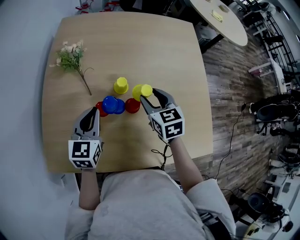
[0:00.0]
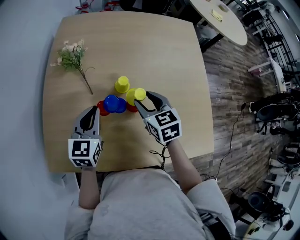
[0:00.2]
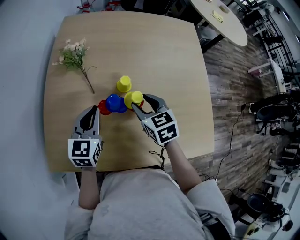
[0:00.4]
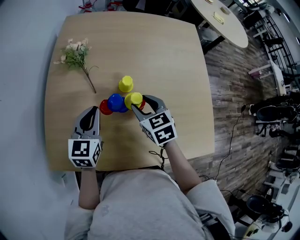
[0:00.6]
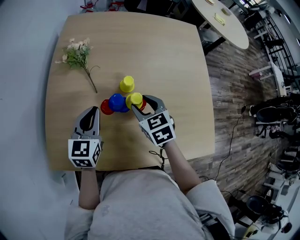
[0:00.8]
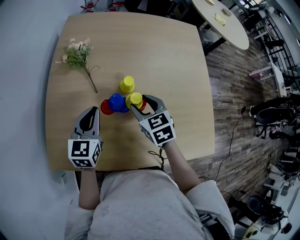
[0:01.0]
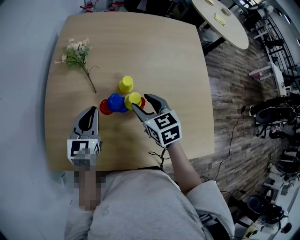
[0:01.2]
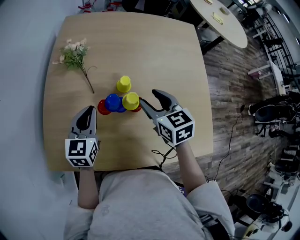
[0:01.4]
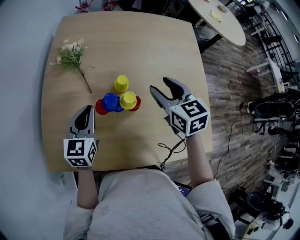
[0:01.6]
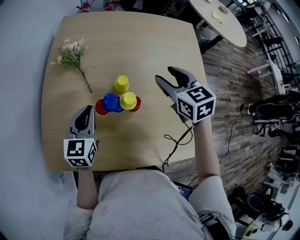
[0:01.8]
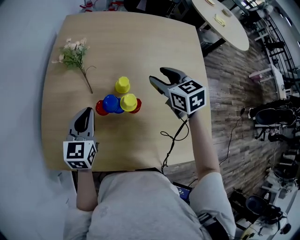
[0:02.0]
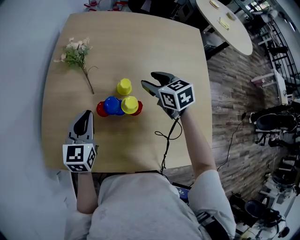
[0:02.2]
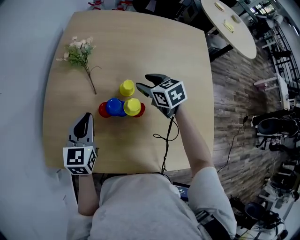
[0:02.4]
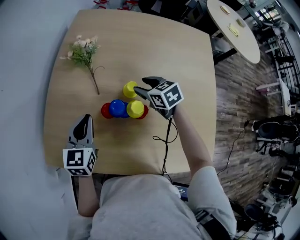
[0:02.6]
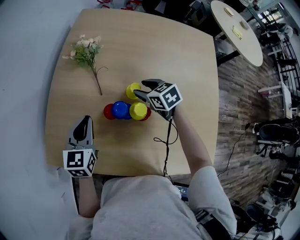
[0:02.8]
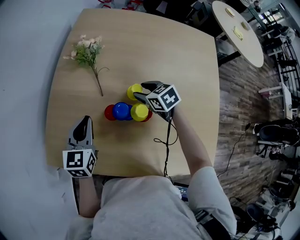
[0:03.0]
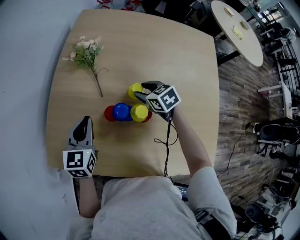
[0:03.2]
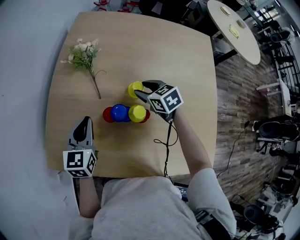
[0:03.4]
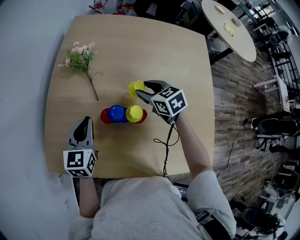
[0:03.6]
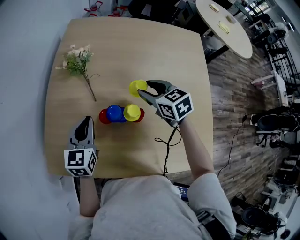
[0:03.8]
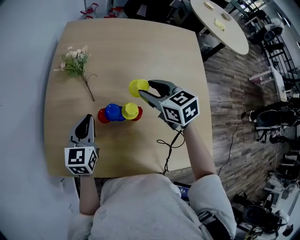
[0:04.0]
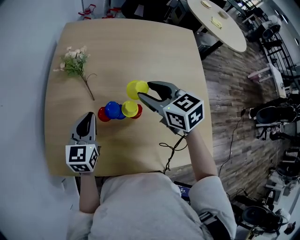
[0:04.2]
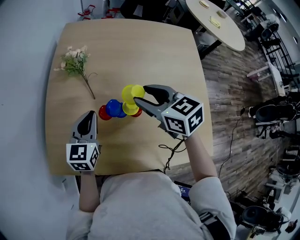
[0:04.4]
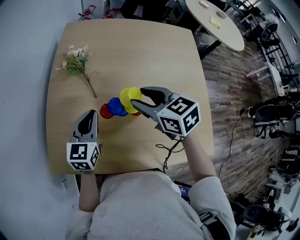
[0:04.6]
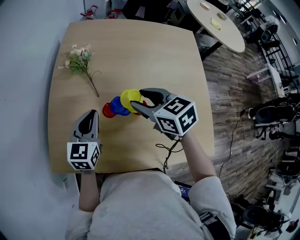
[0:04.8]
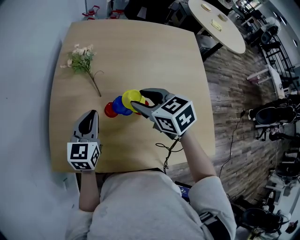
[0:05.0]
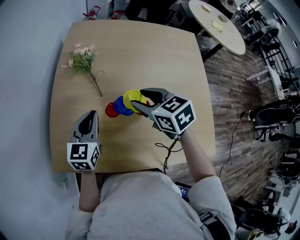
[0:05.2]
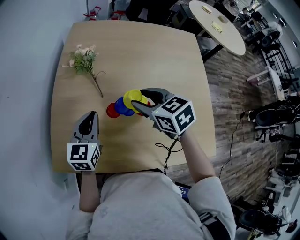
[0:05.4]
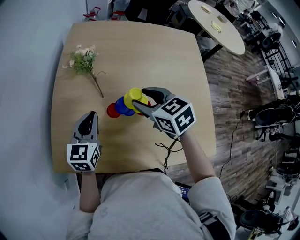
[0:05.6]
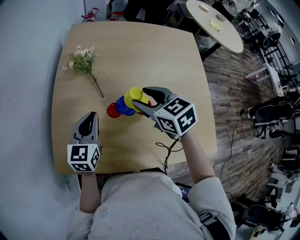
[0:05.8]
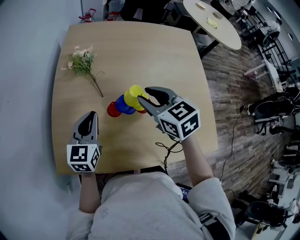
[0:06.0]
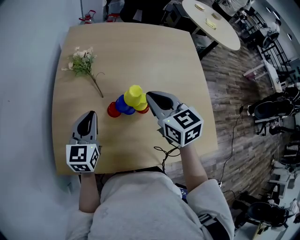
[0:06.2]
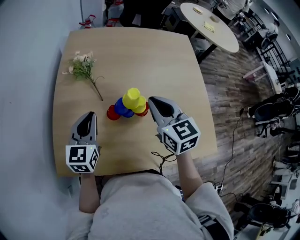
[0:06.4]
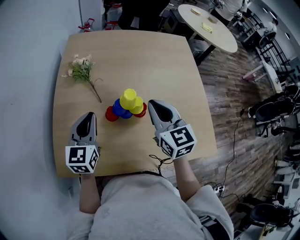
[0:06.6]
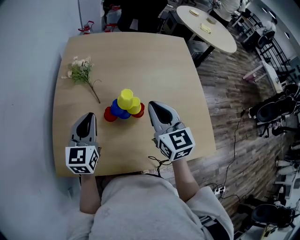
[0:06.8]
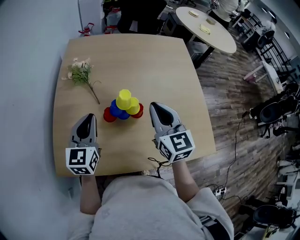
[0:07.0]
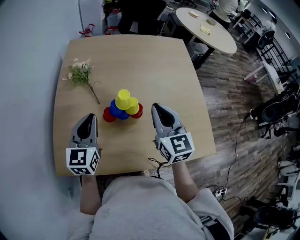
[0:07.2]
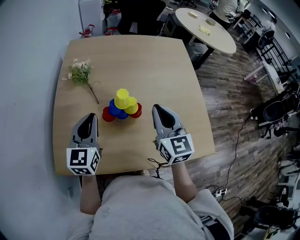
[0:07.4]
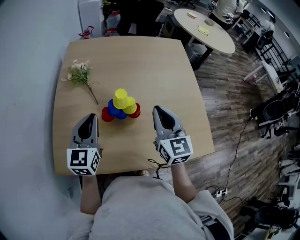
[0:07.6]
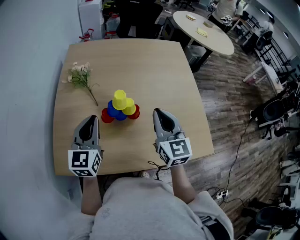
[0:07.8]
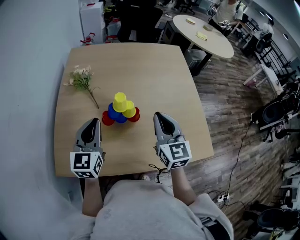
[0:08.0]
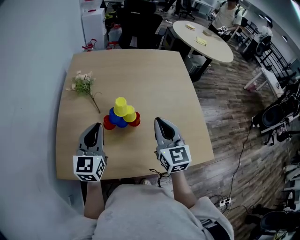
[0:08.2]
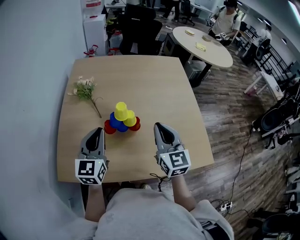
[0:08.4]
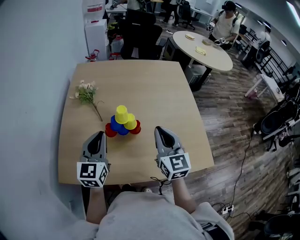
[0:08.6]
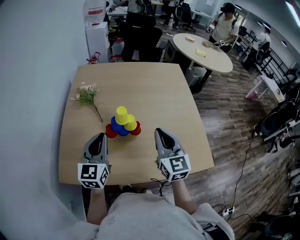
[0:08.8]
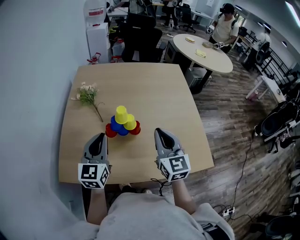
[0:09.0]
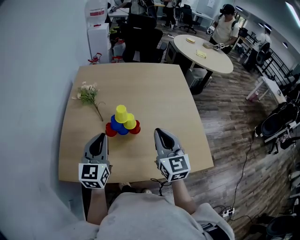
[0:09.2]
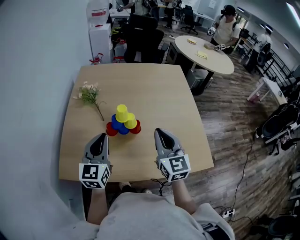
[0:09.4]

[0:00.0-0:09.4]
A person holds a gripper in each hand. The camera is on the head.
0.0 to 1.6 s: The right gripper moves upward, about 10 cm.
1.6 to 3.2 s: The right gripper goes some 20 cm downward, forward and to the left, and turns by some 30 degrees. Meanwhile the left gripper ends up some 5 cm from where it was.
3.2 to 4.8 s: The right gripper shifts about 20 cm upward and backward.
4.8 to 6.2 s: The right gripper rotates roughly 20 degrees, and closes up.
6.2 to 7.8 s: The left gripper heads upward and to the right, covering approximately 10 cm; the right gripper travels to the right and backward by approximately 10 cm, and changes its angle by about 30 degrees.
7.8 to 9.4 s: The grippers both shift backward by approximately 5 cm.

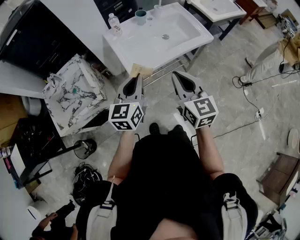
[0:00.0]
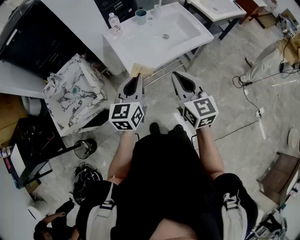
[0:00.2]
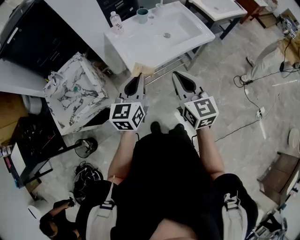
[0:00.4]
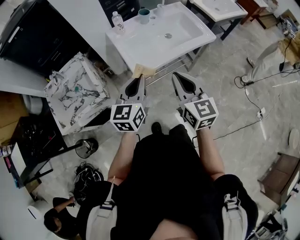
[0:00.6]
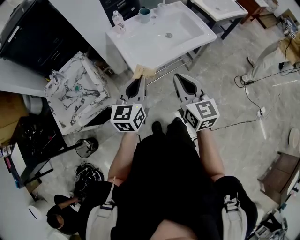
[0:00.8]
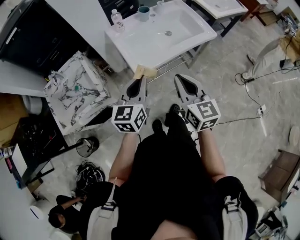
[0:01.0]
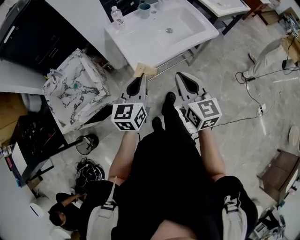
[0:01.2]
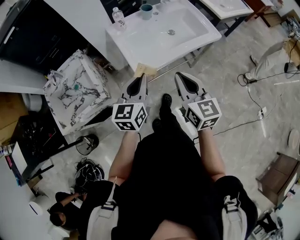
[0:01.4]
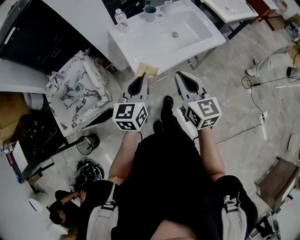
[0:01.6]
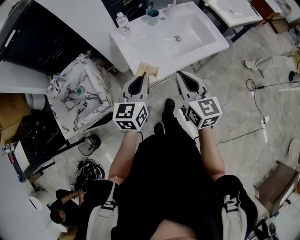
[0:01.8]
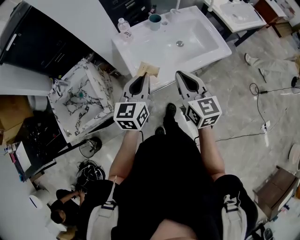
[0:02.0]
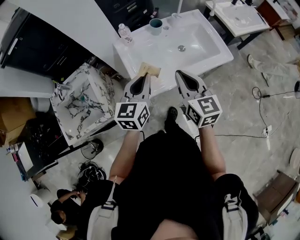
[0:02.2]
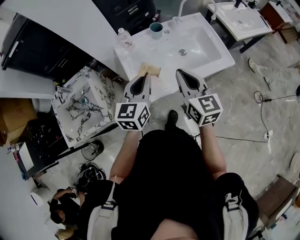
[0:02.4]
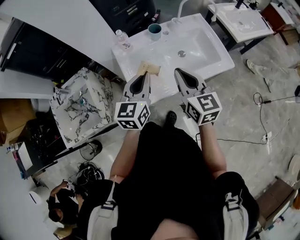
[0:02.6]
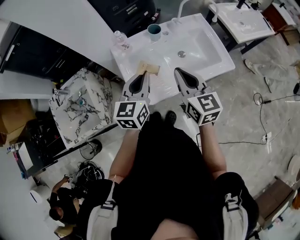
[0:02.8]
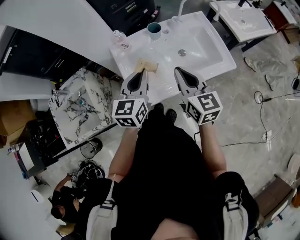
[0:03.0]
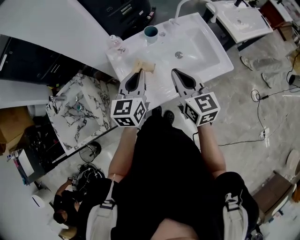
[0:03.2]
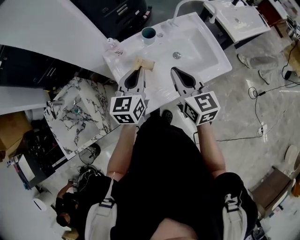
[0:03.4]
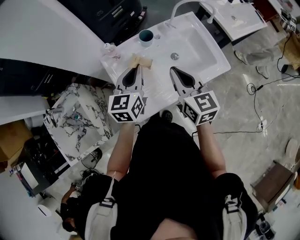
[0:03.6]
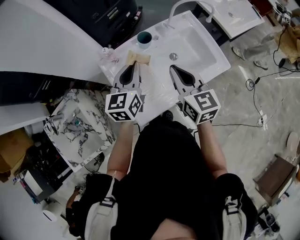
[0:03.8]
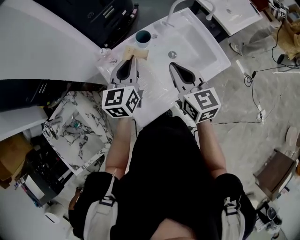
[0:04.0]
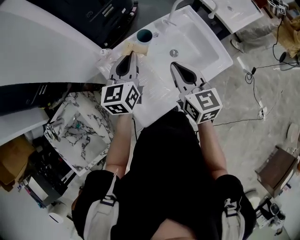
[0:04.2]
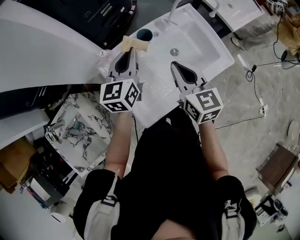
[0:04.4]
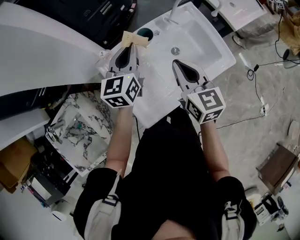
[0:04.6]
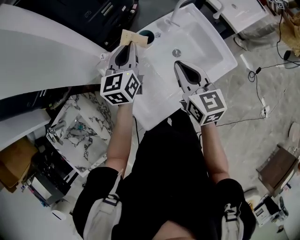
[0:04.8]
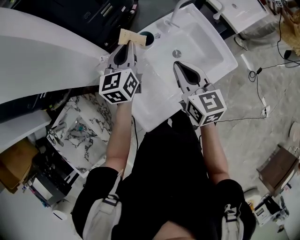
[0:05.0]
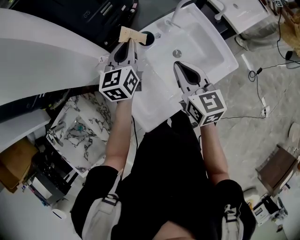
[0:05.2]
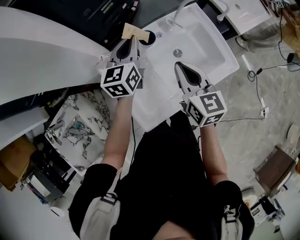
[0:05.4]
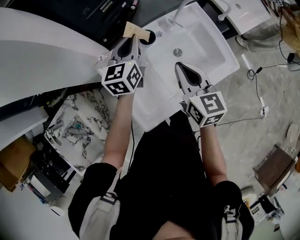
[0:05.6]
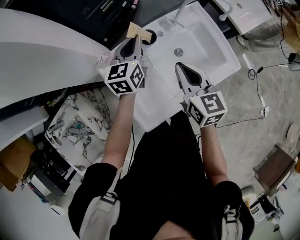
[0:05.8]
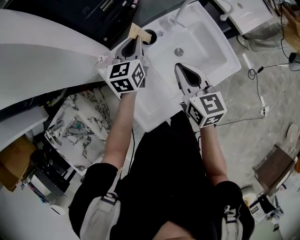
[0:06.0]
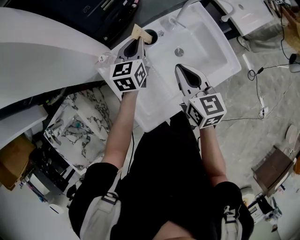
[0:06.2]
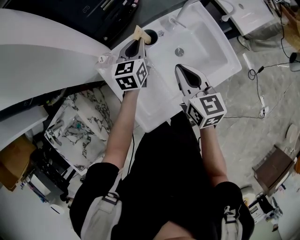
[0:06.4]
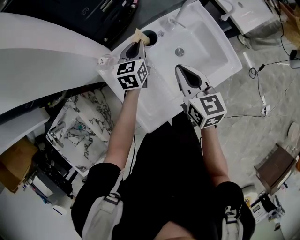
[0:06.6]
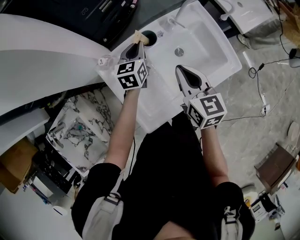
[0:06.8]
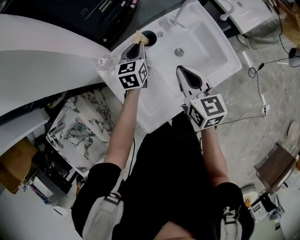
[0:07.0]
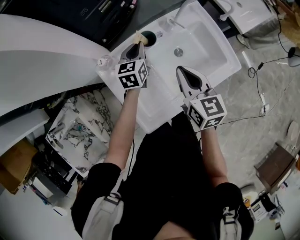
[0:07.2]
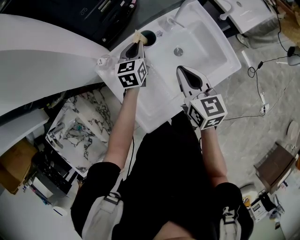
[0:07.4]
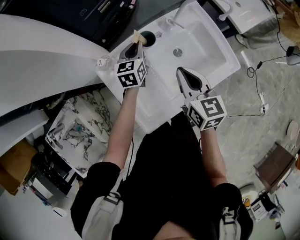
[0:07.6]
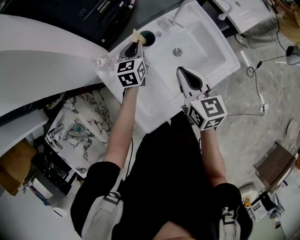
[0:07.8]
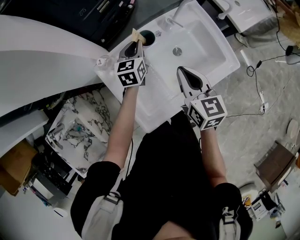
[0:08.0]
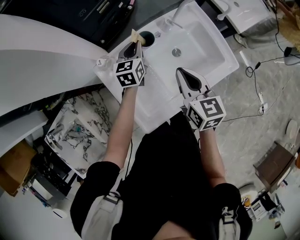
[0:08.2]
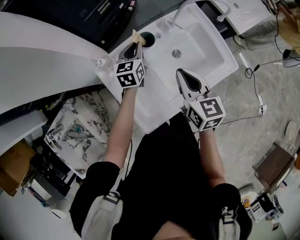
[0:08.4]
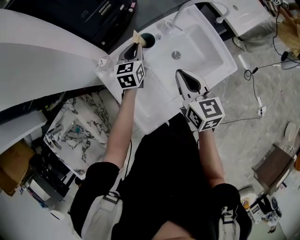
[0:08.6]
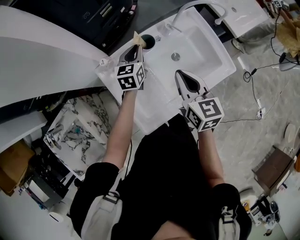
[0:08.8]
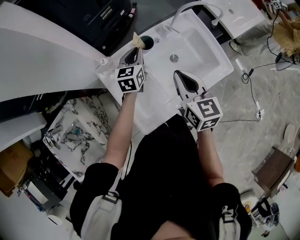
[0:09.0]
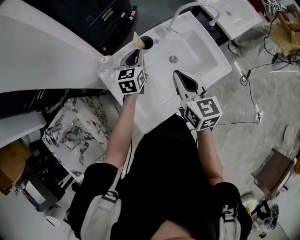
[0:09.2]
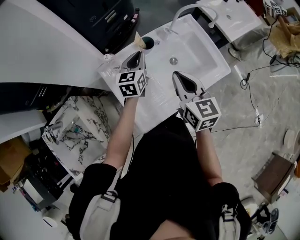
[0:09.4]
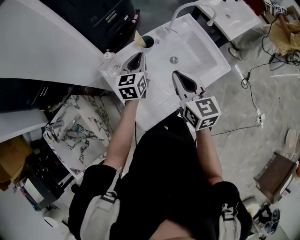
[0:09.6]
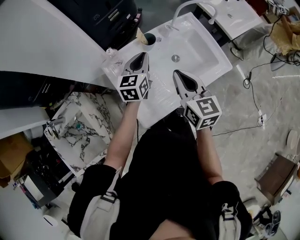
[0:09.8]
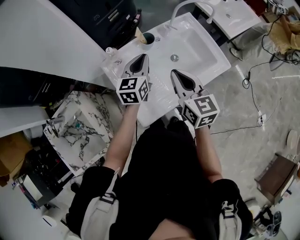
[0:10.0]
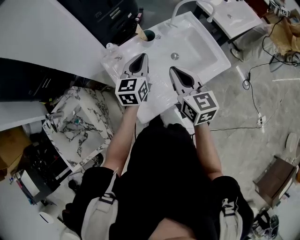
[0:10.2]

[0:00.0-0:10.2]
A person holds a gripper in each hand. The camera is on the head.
0.0 to 1.4 s: The grippers make only small movements.
1.4 to 3.0 s: Both grippers travel together forward, about 20 cm.
3.0 to 4.4 s: The left gripper heads forward, covering about 20 cm. The right gripper moves forward, approximately 10 cm.
4.4 to 5.8 s: The left gripper shifts about 10 cm forward and downward.
5.8 to 7.2 s: The left gripper travels downward by some 10 cm.
7.2 to 8.8 s: There are only small adjustments of the grippers.
8.8 to 10.2 s: The right gripper travels backward by about 5 cm; the left gripper moves backward and upward, roughly 15 cm.

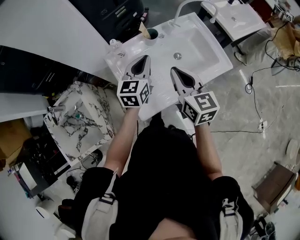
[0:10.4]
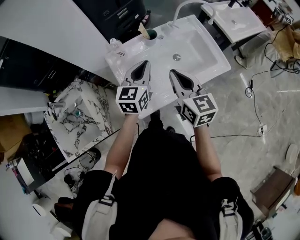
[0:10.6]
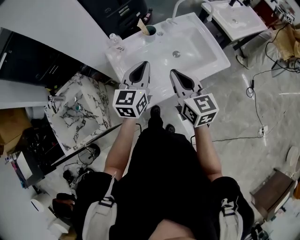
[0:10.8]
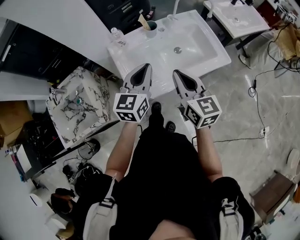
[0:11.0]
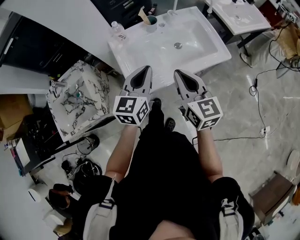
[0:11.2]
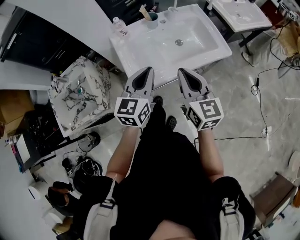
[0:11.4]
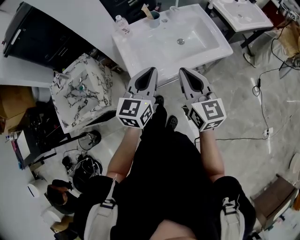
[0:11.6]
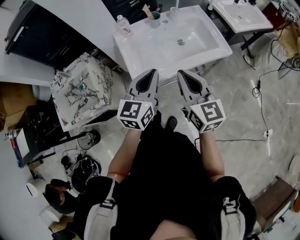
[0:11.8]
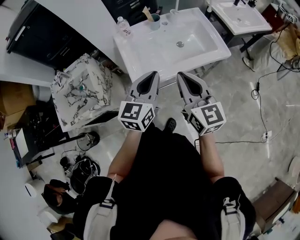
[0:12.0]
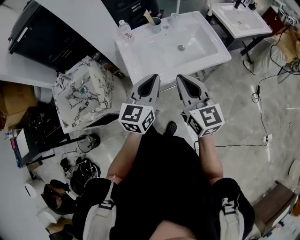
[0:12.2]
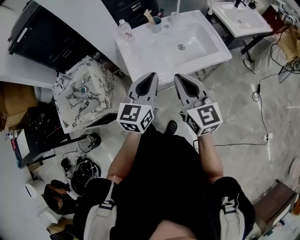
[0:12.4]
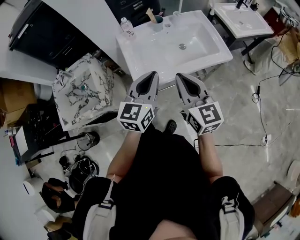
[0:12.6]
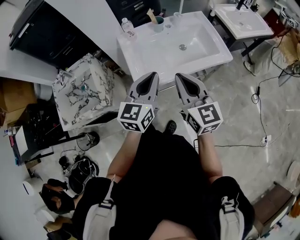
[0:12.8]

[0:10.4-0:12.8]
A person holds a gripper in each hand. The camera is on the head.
10.4 to 11.6 s: The grippers both shift backward by roughly 20 cm.
11.6 to 12.8 s: The grippers move only a little.

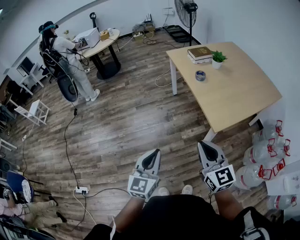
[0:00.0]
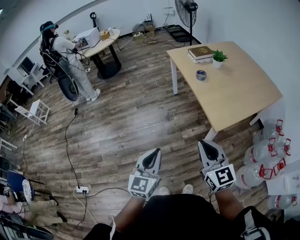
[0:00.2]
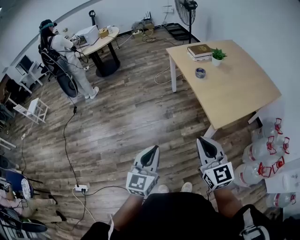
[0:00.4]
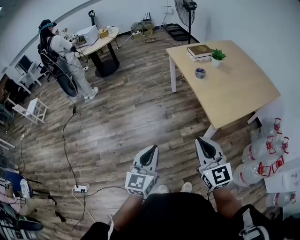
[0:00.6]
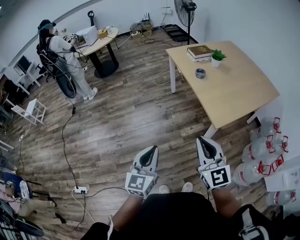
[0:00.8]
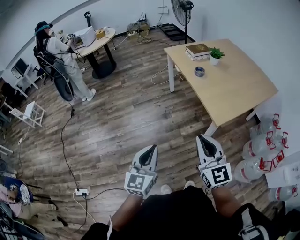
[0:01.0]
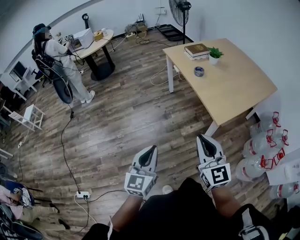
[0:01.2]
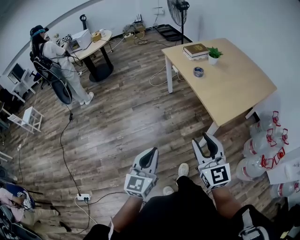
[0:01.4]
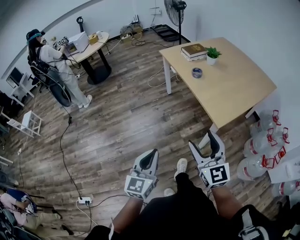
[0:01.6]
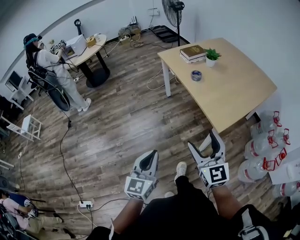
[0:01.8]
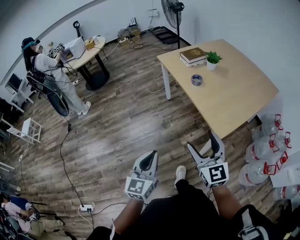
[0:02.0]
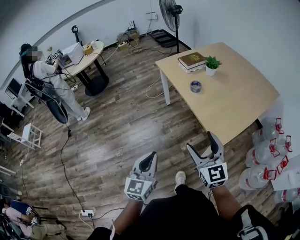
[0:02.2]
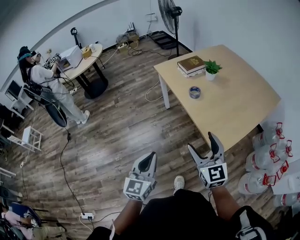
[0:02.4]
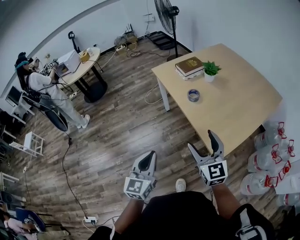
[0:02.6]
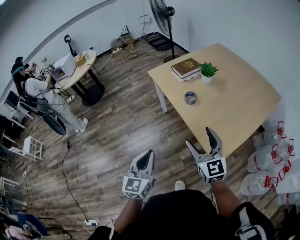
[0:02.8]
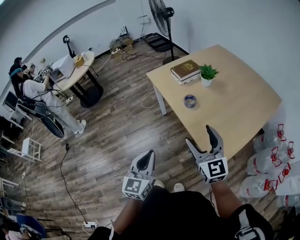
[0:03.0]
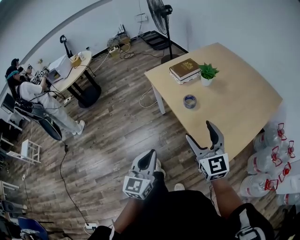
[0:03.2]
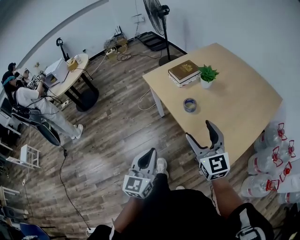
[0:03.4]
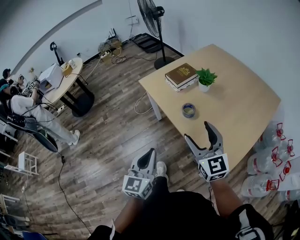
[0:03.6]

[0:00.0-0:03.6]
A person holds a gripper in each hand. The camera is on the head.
0.0 to 1.8 s: The left gripper is displaced forward and to the left by approximately 10 cm. The right gripper moves forward, about 5 cm, and opens.
1.8 to 3.6 s: The two grippers go some 40 cm forward.
